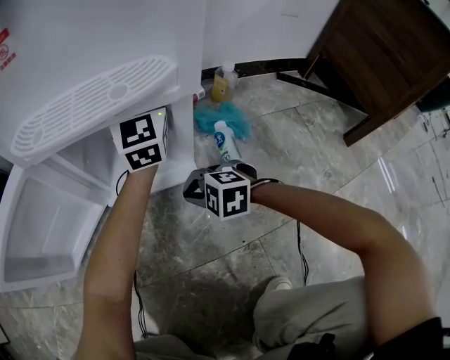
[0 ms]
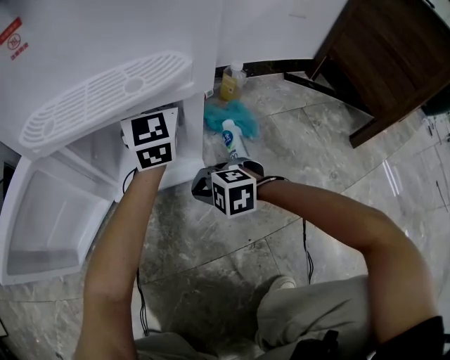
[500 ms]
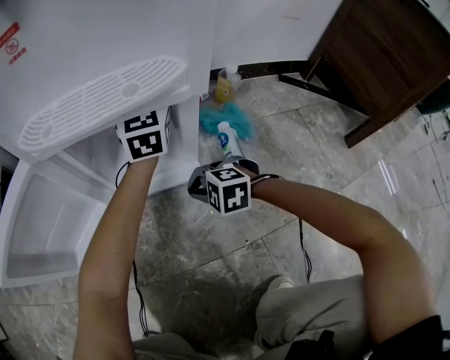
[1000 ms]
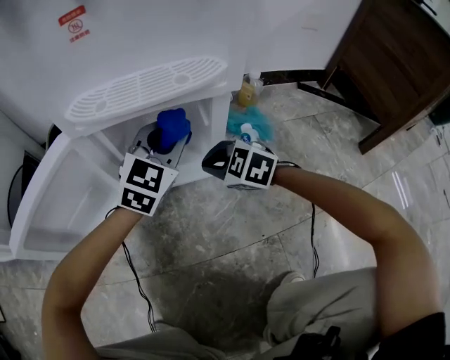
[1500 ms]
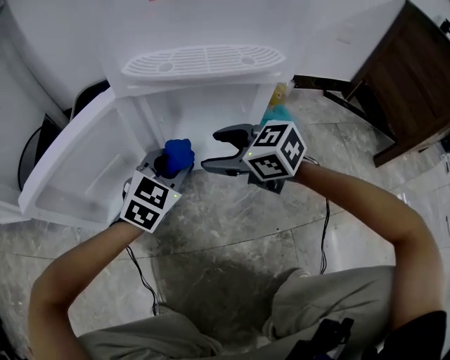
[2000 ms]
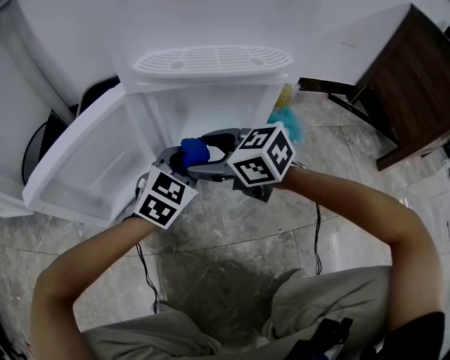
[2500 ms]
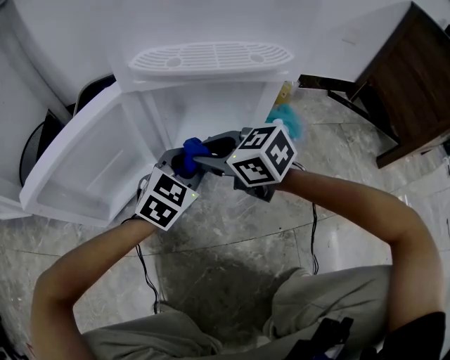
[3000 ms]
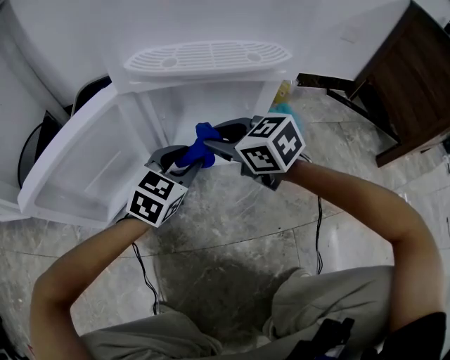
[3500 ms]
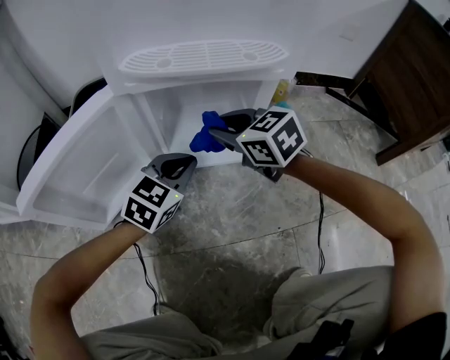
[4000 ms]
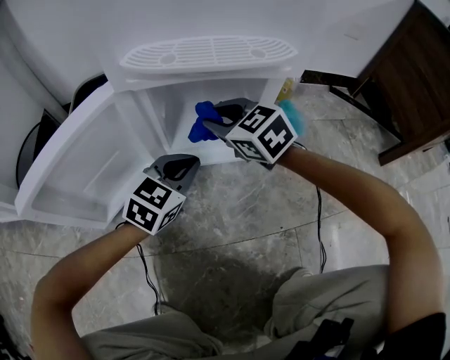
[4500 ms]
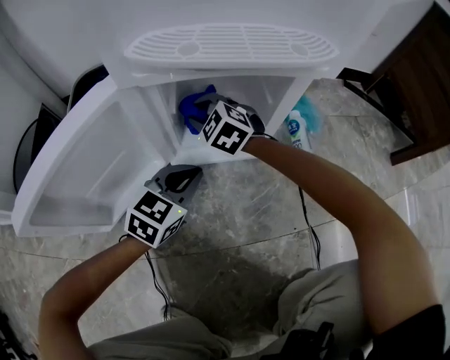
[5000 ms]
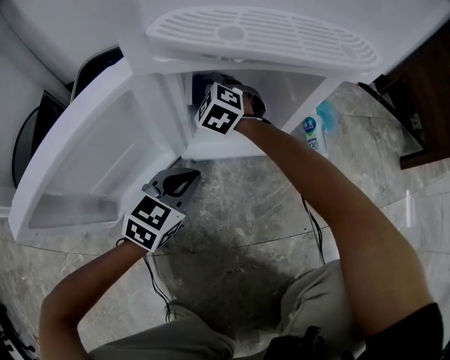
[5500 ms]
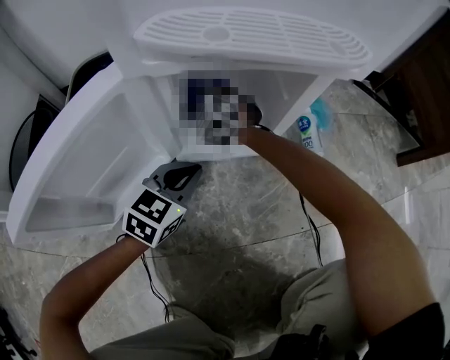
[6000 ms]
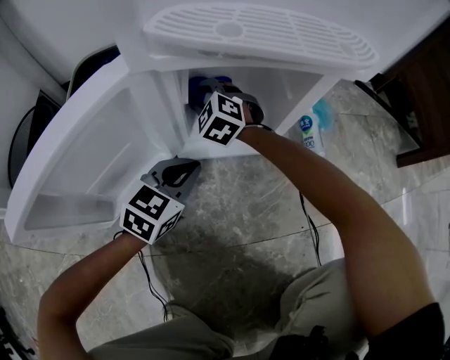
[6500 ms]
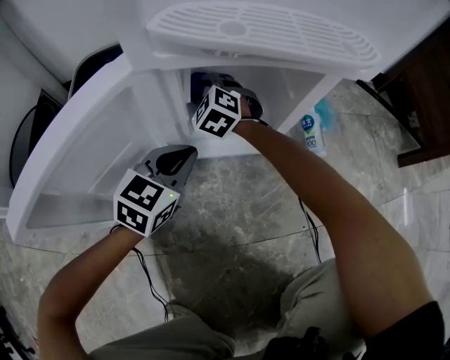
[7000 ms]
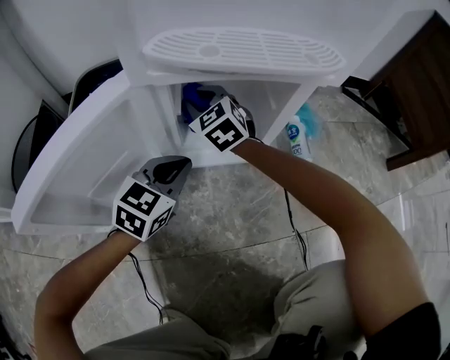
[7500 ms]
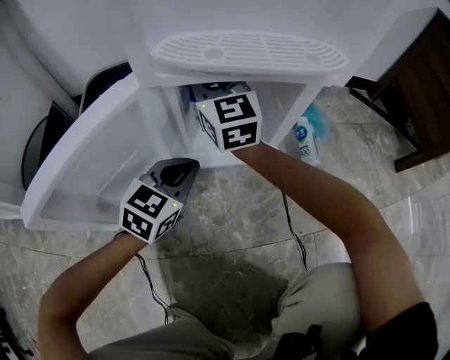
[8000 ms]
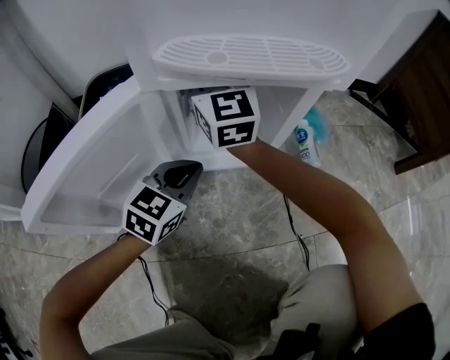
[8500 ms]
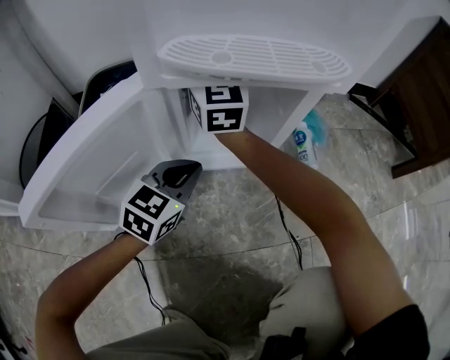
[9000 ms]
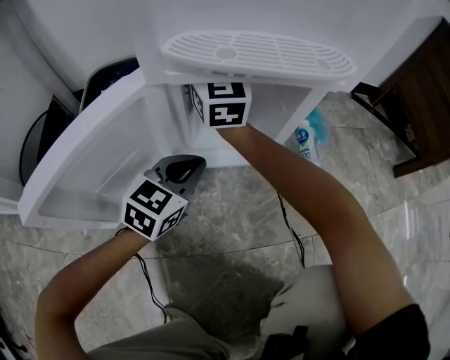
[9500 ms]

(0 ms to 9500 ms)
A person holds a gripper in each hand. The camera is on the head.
0 ms - 2000 ms: The left gripper heads to the left, backward and downward, covering about 25 cm, and points its fingers some 40 degrees further downward. Meanwhile the right gripper heads upward and to the left, covering about 15 cm, turns by about 40 degrees, and opens up.
2000 ms - 4000 ms: The right gripper ends up about 5 cm from where it was, and closes.
4000 ms - 5500 ms: The right gripper travels forward, downward and to the left by roughly 25 cm, and turns by about 40 degrees, while the left gripper goes about 10 cm downward and to the left.
5500 ms - 7500 ms: The left gripper ends up some 5 cm from where it was. The right gripper heads upward, covering roughly 5 cm, and swivels approximately 20 degrees.
7500 ms - 9500 ms: The right gripper travels upward by about 15 cm, and tips its fingers upward by approximately 40 degrees.

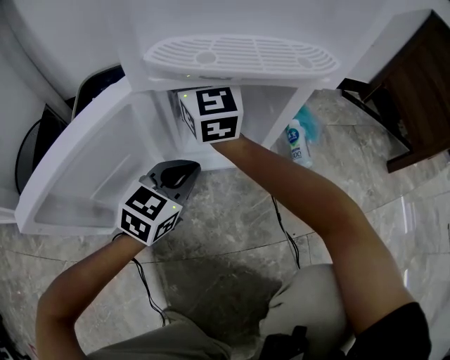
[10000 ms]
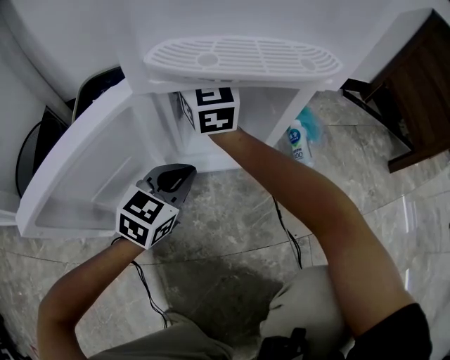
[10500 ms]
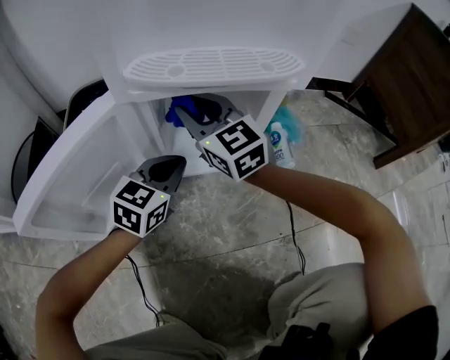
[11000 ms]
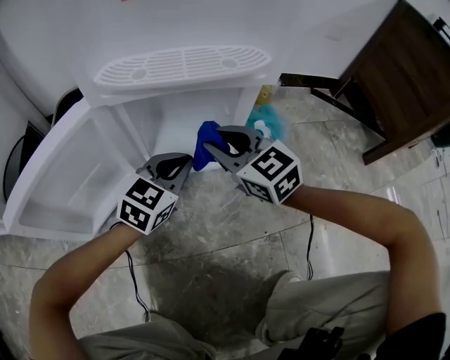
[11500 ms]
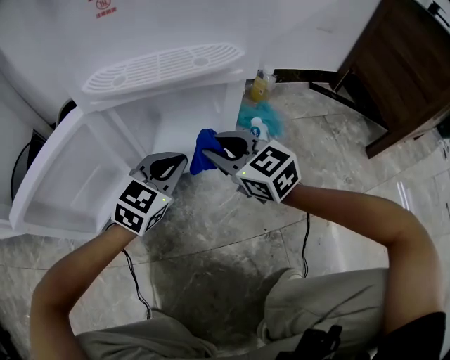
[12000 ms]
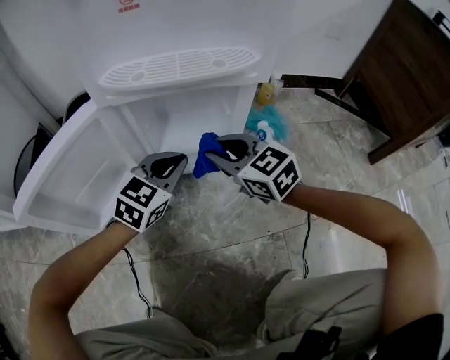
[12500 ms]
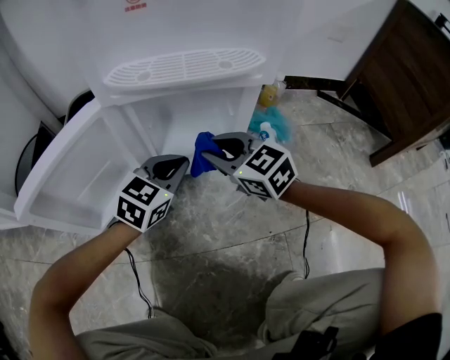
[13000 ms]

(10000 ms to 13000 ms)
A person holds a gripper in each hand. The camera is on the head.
10000 ms - 11500 ms: The right gripper shifts about 20 cm to the right, backward and downward, and turns by about 30 degrees. Meanwhile the left gripper moves to the right, about 5 cm.
11500 ms - 13000 ms: There are only small adjustments of the grippers.

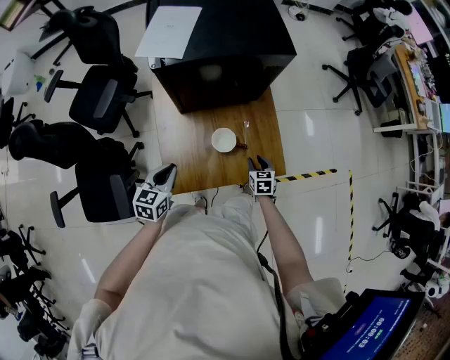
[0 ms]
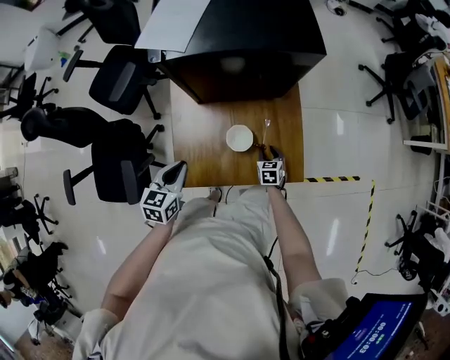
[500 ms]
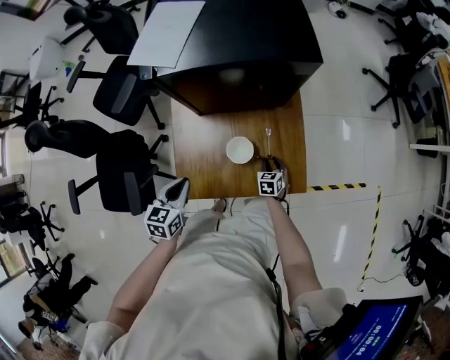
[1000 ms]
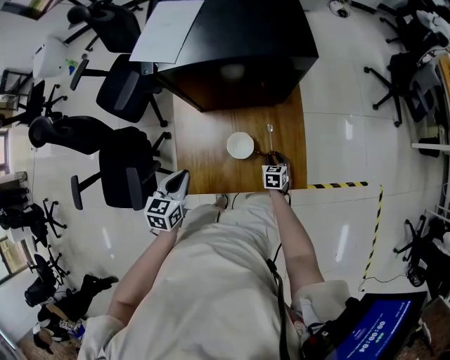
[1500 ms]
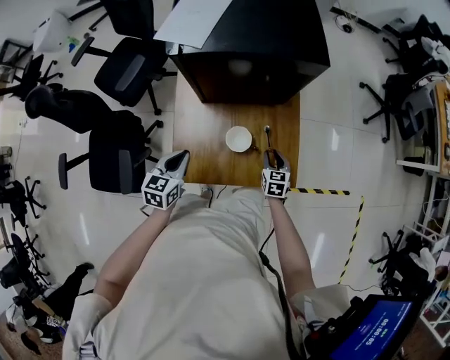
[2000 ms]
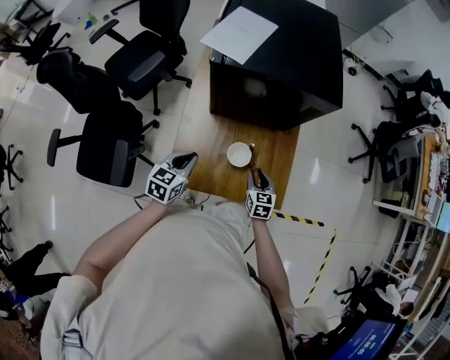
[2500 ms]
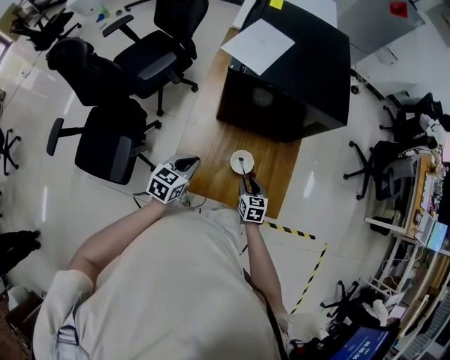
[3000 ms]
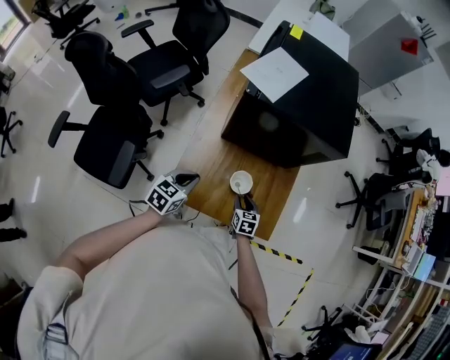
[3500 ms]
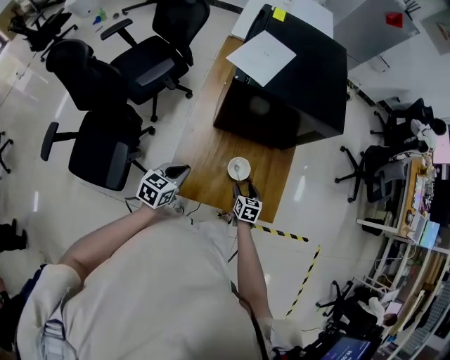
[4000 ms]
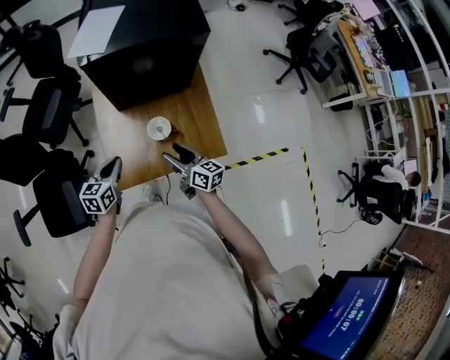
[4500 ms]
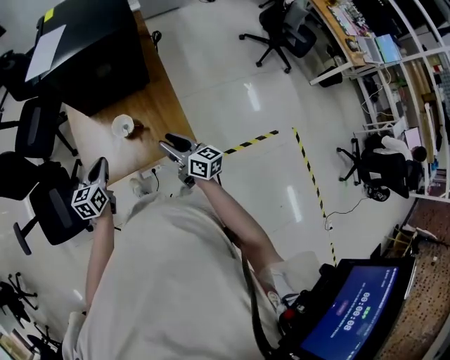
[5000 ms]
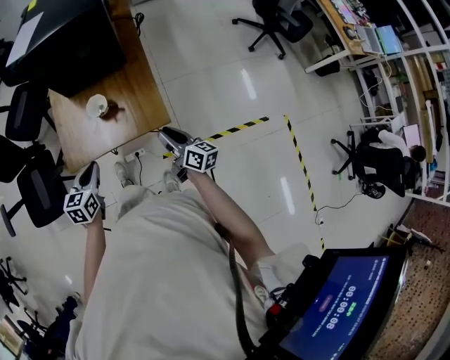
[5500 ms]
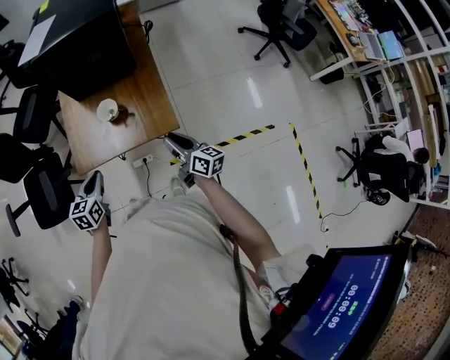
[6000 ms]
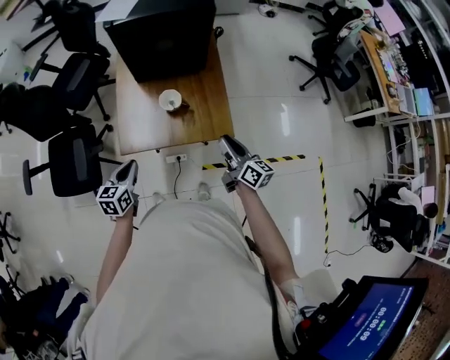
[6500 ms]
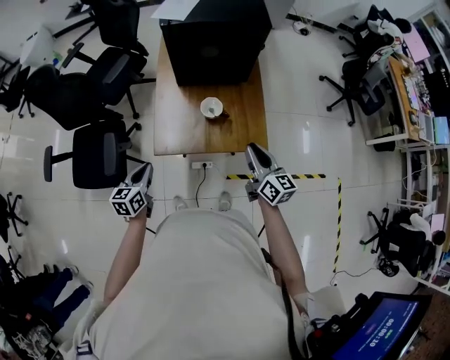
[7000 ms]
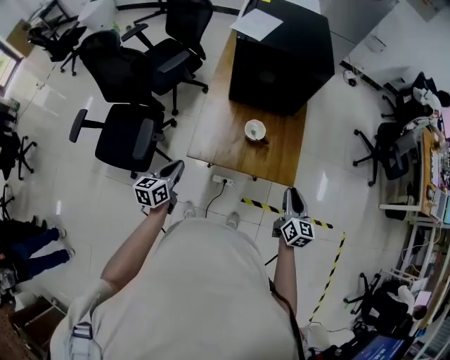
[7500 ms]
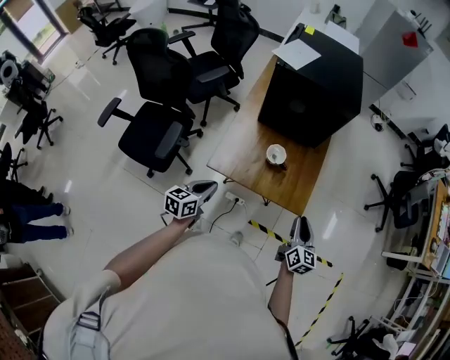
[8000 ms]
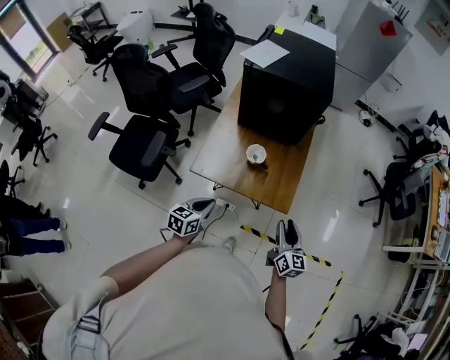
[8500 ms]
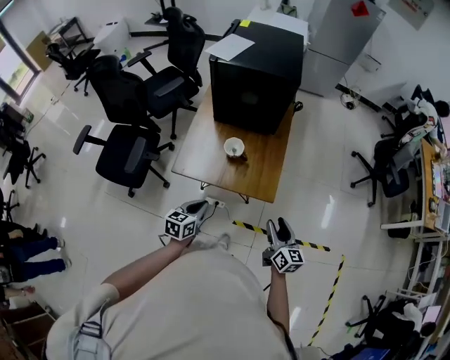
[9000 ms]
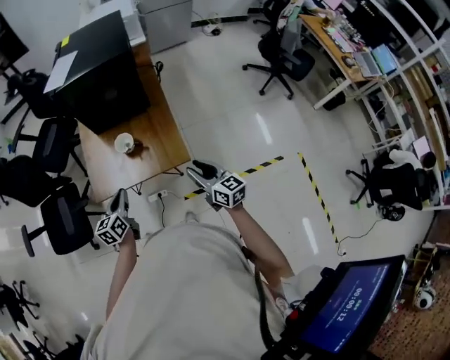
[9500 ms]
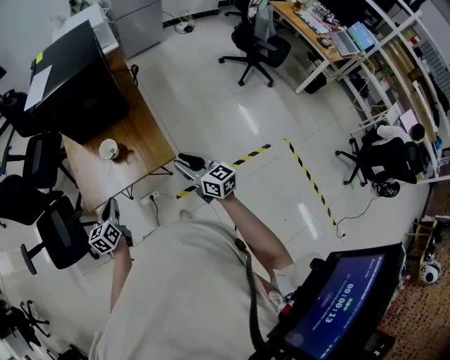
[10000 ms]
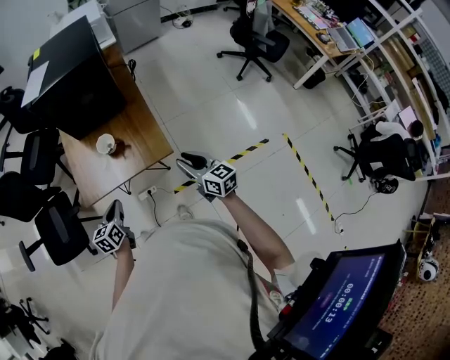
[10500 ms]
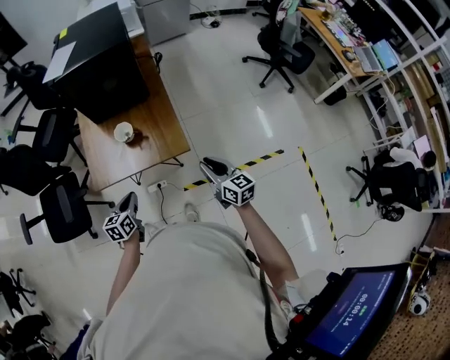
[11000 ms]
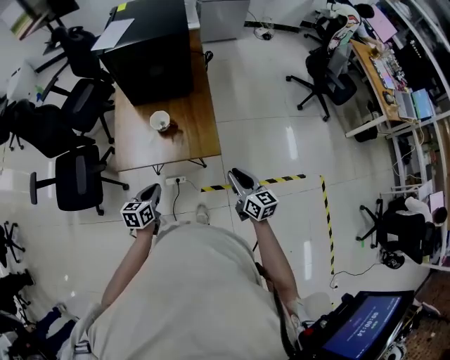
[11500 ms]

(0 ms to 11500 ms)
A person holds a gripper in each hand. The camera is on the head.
0 ms - 2000 ms: The left gripper moves approximately 5 cm, while the right gripper heads forward, covering some 10 cm, and moves approximately 10 cm downward and comes back.
2000 ms - 4000 ms: The right gripper goes approximately 10 cm to the left, and opens. The left gripper is displaced to the left by approximately 5 cm.
4000 ms - 6000 ms: The left gripper moves backward and to the right, approximately 25 cm; the right gripper is displaced to the right, backward and upward by about 30 cm, tips its fingers upward by about 40 degrees, and closes.
6000 ms - 7500 ms: The right gripper rotates about 30 degrees; the left gripper travels to the left by about 20 cm, and turns by roughly 30 degrees.
7500 ms - 9500 ms: The left gripper goes approximately 20 cm to the right. The right gripper is displaced to the right by some 5 cm.
9500 ms - 11500 ms: The left gripper goes roughly 10 cm backward and downward. The right gripper ends up approximately 5 cm from where it was.

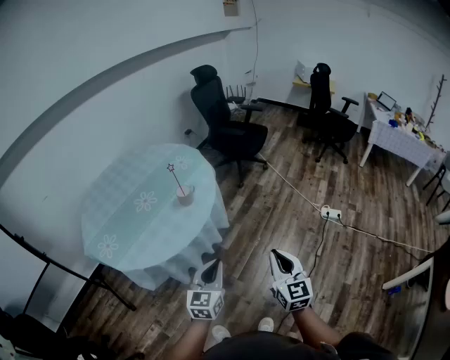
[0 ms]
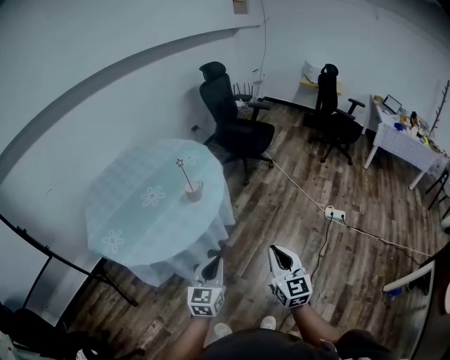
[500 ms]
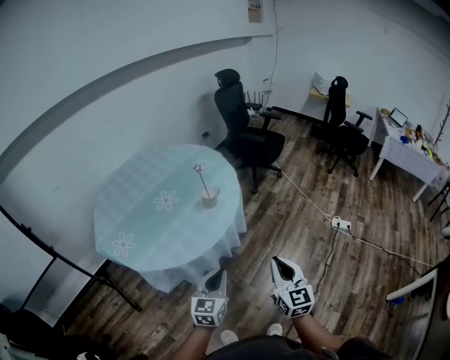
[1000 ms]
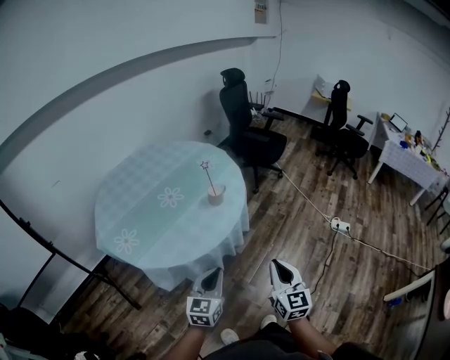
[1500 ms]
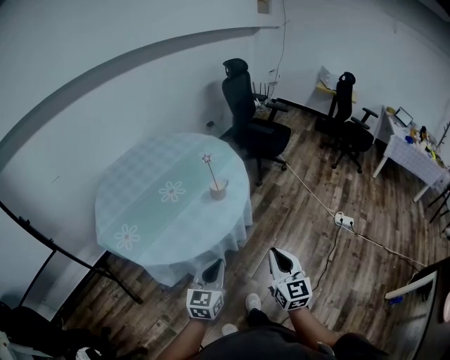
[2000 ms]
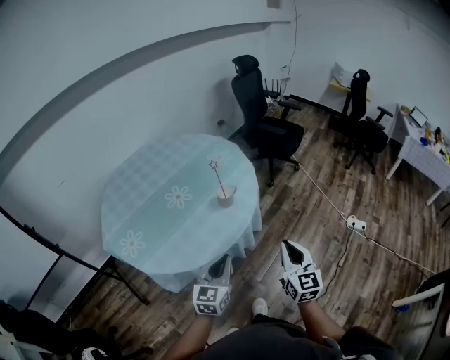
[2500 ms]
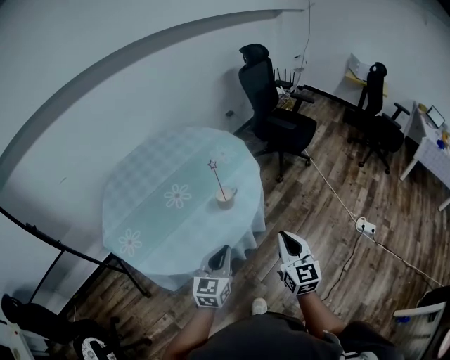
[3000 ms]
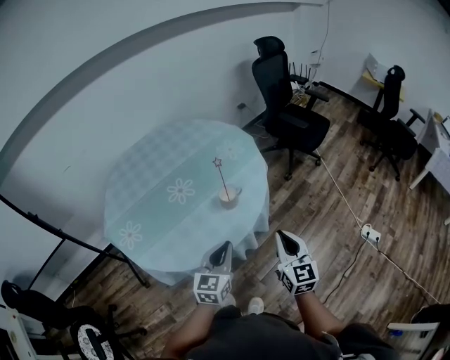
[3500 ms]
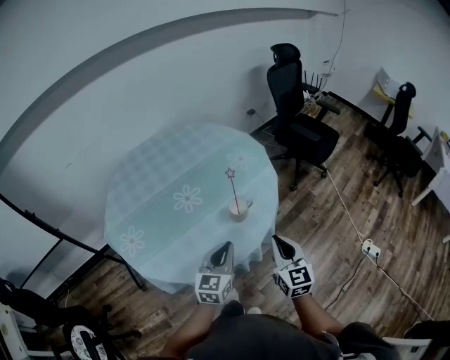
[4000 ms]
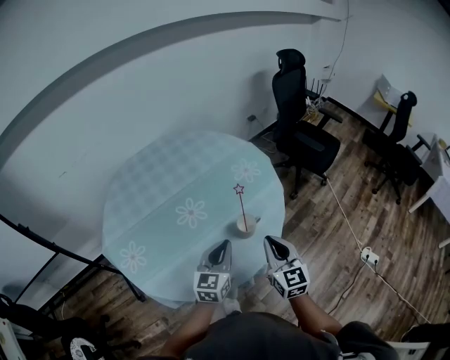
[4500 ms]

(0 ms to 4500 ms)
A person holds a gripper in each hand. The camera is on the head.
0 ms - 2000 ms: Both grippers travel together to the left, roughly 15 cm.
2000 ms - 4500 ms: Both grippers move forward, approximately 35 cm.
